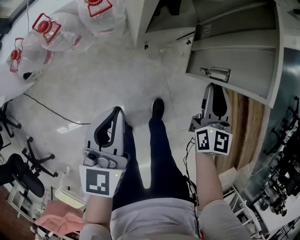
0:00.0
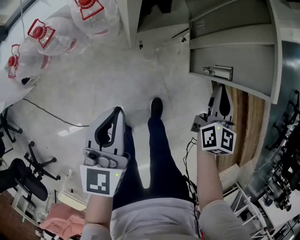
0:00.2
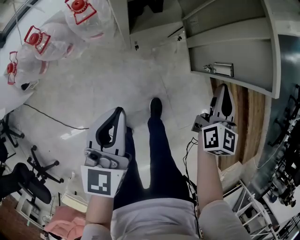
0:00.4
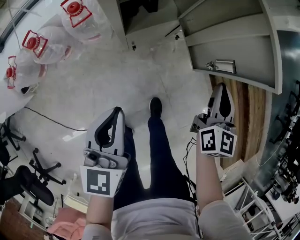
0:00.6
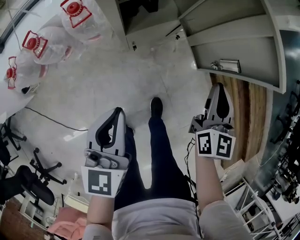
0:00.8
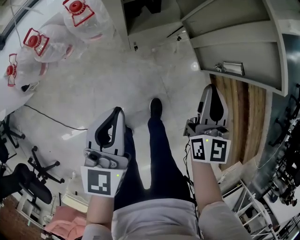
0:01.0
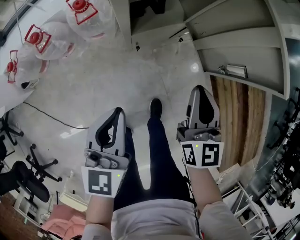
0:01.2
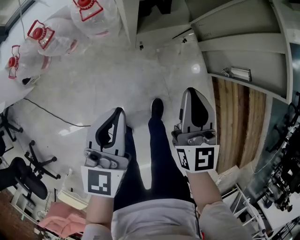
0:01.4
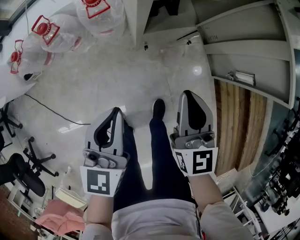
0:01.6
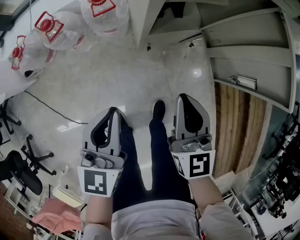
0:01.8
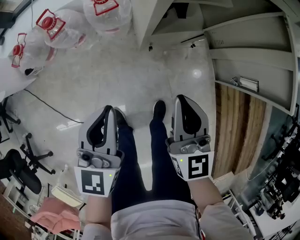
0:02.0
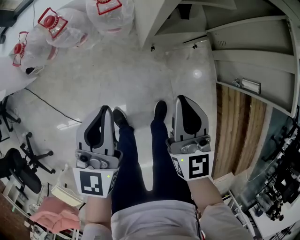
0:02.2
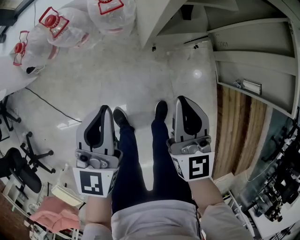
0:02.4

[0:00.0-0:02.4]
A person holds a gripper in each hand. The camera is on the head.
0:00.0 to 0:01.2: The right gripper travels to the right and back again, about 10 cm each way.
0:01.2 to 0:02.4: The grippers both shift to the left by some 10 cm.

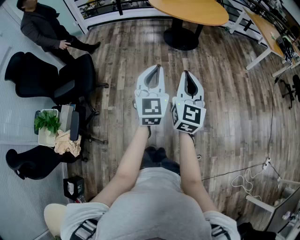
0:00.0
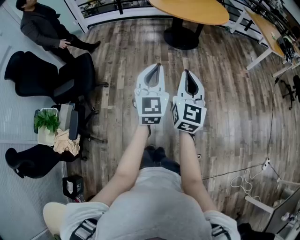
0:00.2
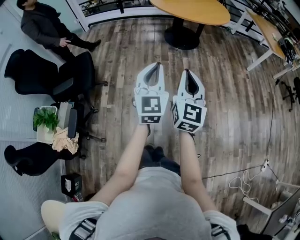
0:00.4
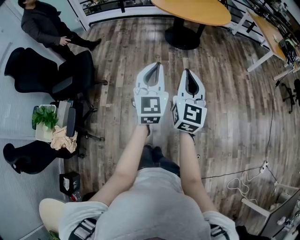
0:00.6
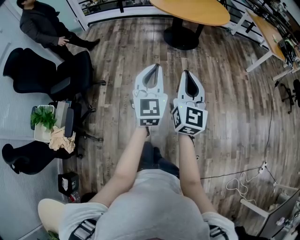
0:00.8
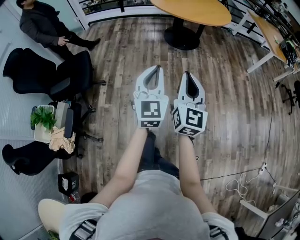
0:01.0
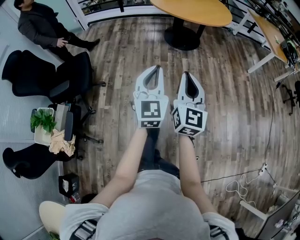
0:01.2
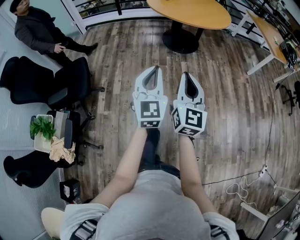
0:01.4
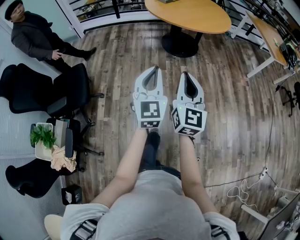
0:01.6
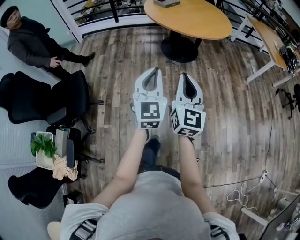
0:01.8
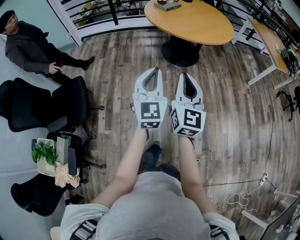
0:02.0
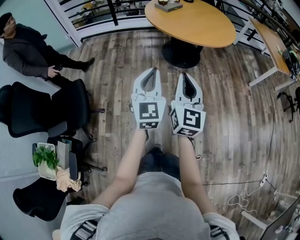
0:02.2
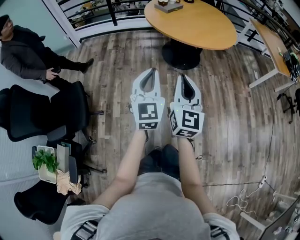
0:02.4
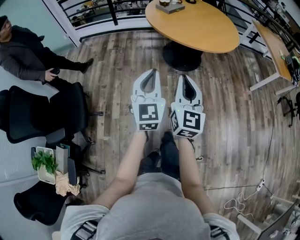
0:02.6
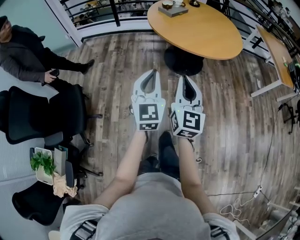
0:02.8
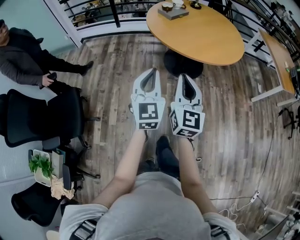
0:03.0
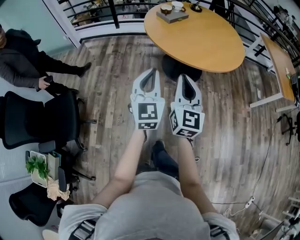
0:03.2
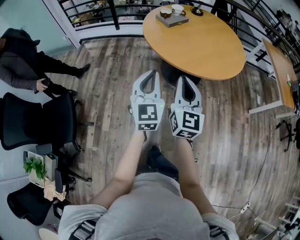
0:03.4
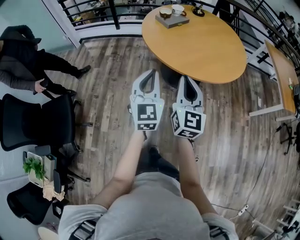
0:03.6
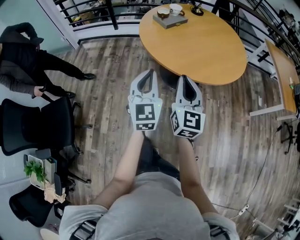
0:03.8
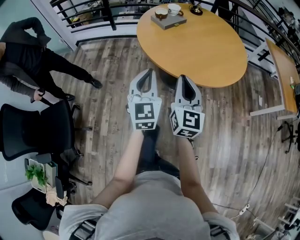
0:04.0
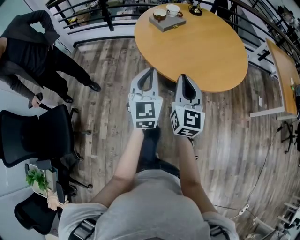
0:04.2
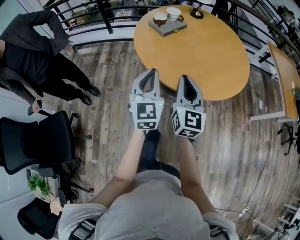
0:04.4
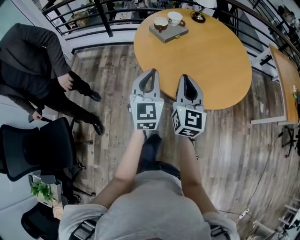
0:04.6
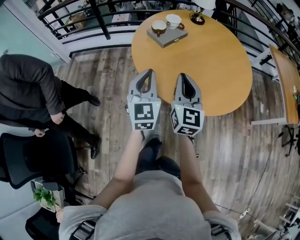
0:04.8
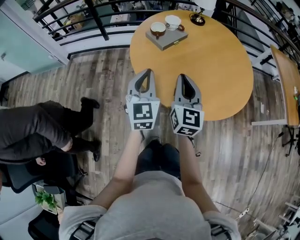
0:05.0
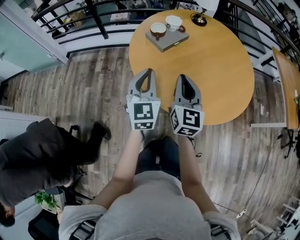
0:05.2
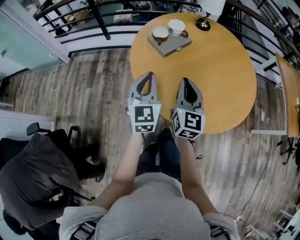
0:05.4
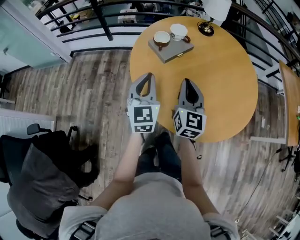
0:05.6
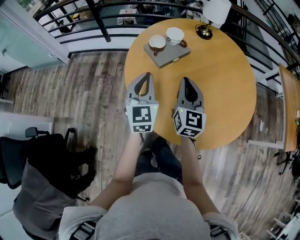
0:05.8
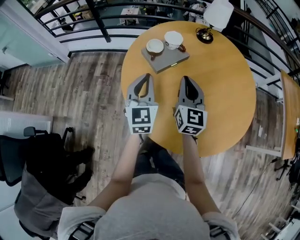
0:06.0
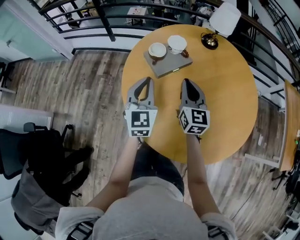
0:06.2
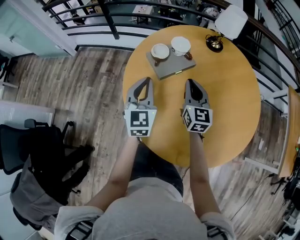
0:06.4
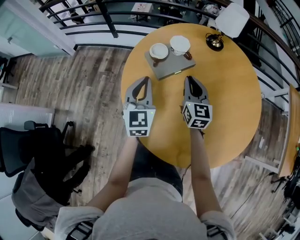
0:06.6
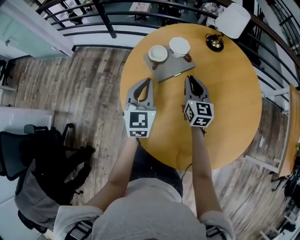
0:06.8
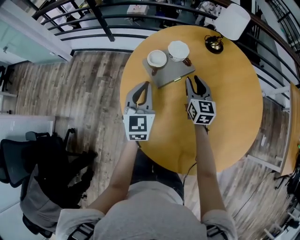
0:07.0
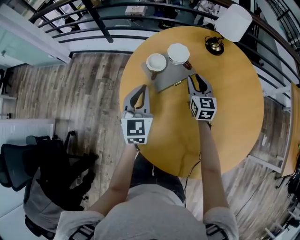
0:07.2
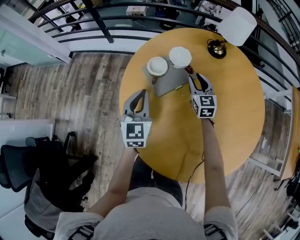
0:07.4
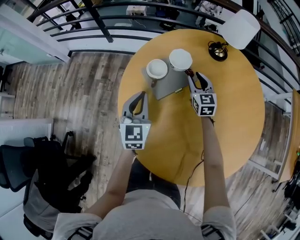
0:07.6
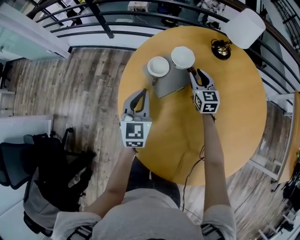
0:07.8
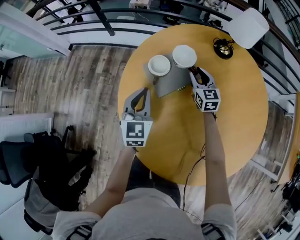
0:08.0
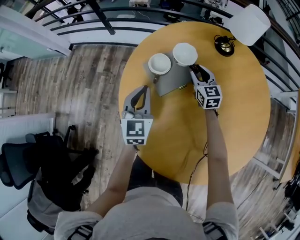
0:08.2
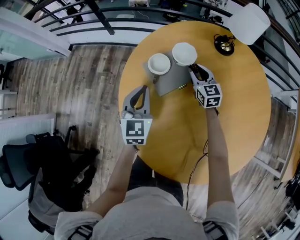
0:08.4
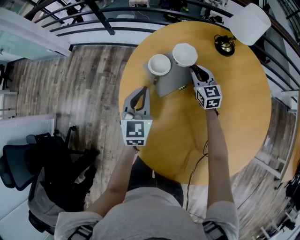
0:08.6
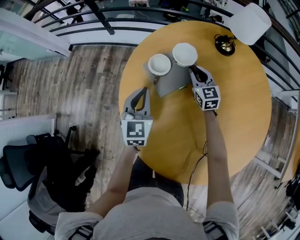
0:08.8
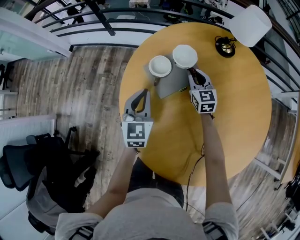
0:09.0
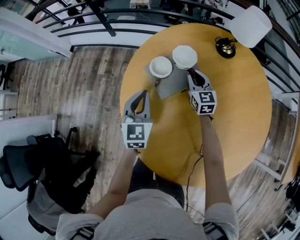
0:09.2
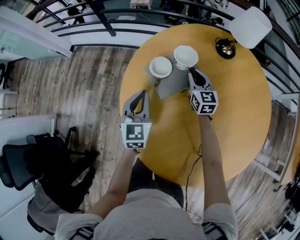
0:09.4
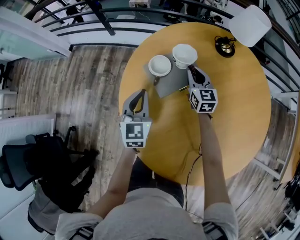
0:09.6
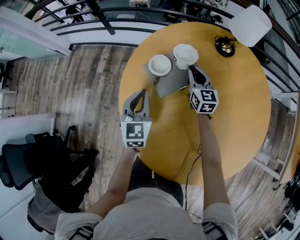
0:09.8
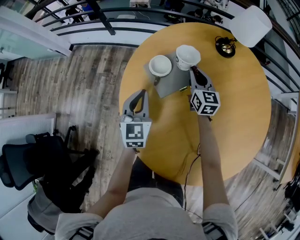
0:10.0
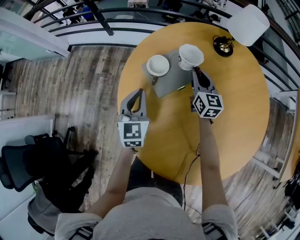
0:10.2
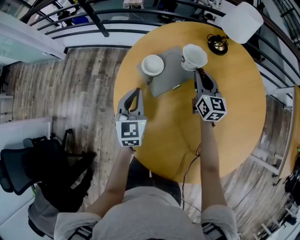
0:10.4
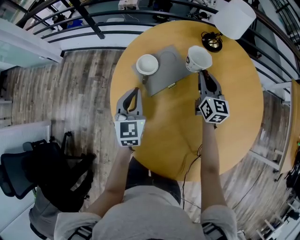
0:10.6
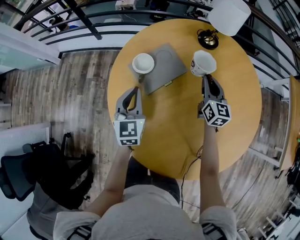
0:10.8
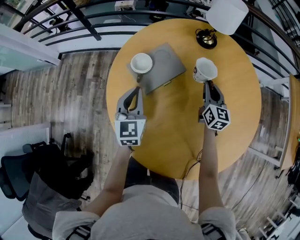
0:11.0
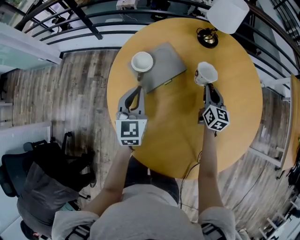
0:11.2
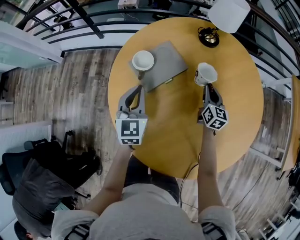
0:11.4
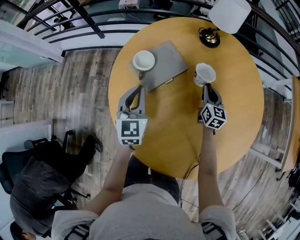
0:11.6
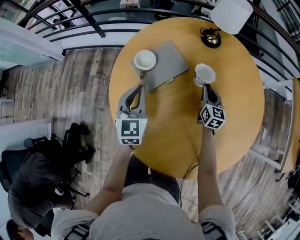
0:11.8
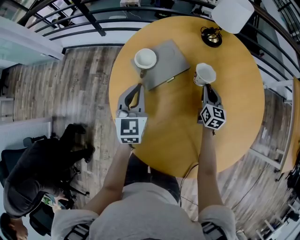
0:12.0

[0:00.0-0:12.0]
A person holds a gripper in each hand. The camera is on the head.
0:00.0 to 0:01.6: Both grippers move forward, about 15 cm.
0:01.6 to 0:03.0: Both grippers move forward, about 35 cm.
0:03.0 to 0:04.4: Both grippers move forward, roughly 30 cm.
0:04.4 to 0:06.0: Both grippers move forward, about 35 cm.
0:06.0 to 0:07.6: The left gripper is displaced forward and downward by about 15 cm. The right gripper heads forward and downward, covering approximately 30 cm, swivels about 20 degrees, and opens its fingers.
0:07.6 to 0:09.0: The grippers make only small movements.
0:09.0 to 0:10.4: The right gripper heads upward and to the right, covering approximately 10 cm.
0:10.4 to 0:12.0: The right gripper travels to the right, downward and backward by approximately 15 cm.

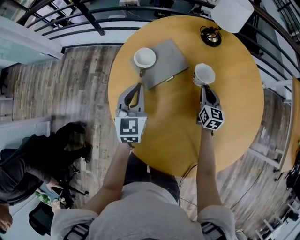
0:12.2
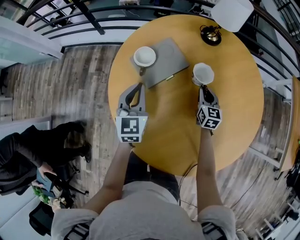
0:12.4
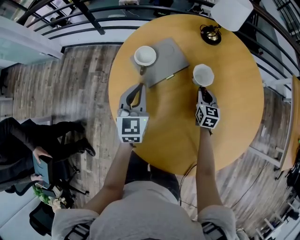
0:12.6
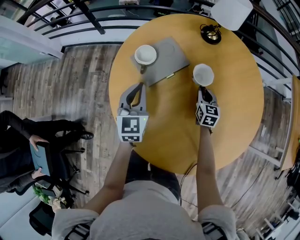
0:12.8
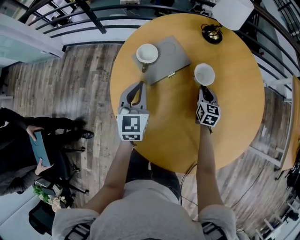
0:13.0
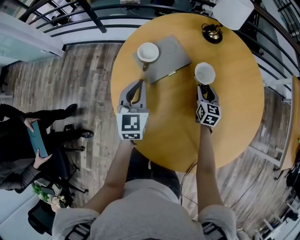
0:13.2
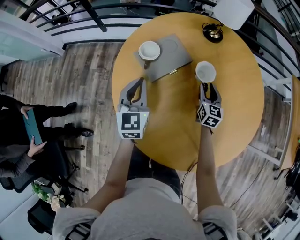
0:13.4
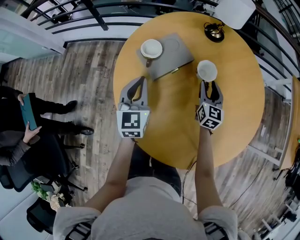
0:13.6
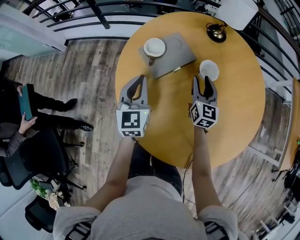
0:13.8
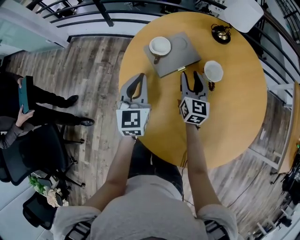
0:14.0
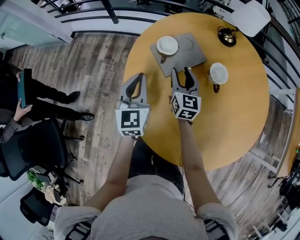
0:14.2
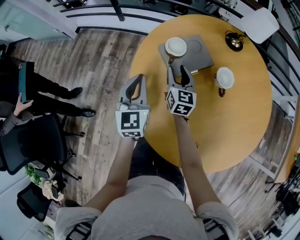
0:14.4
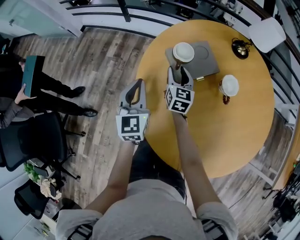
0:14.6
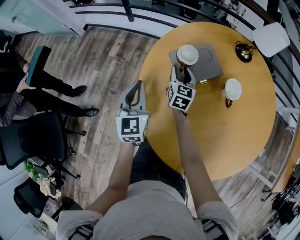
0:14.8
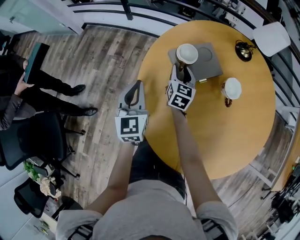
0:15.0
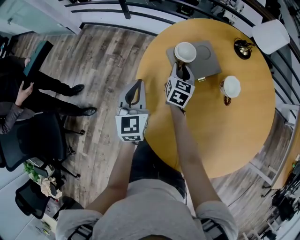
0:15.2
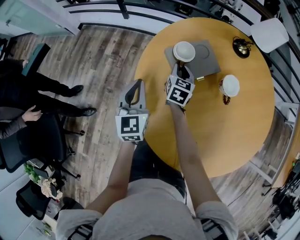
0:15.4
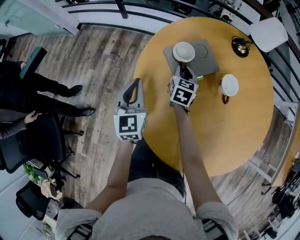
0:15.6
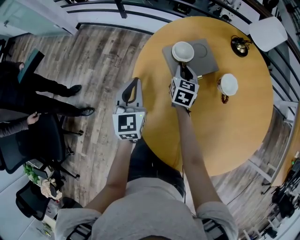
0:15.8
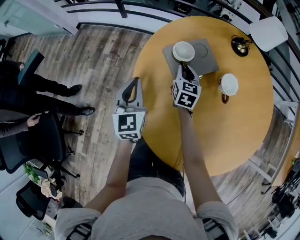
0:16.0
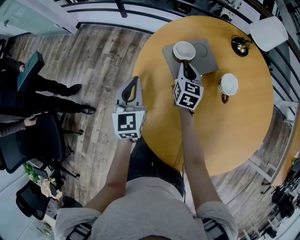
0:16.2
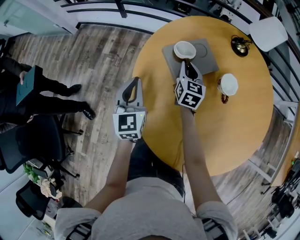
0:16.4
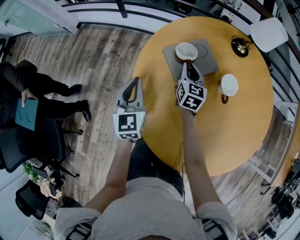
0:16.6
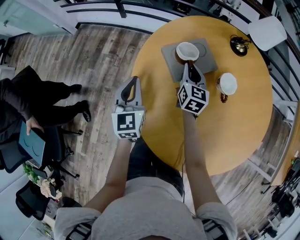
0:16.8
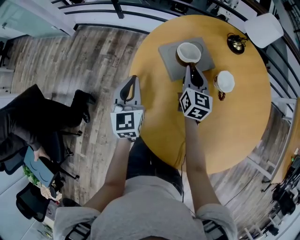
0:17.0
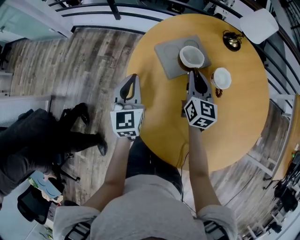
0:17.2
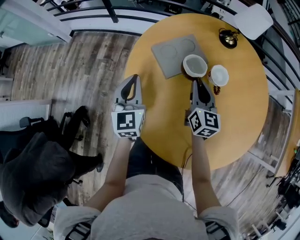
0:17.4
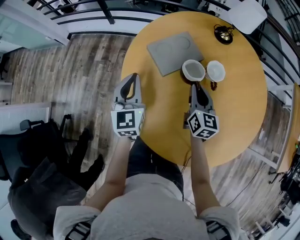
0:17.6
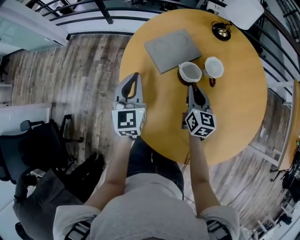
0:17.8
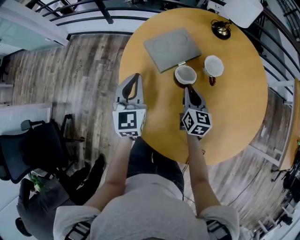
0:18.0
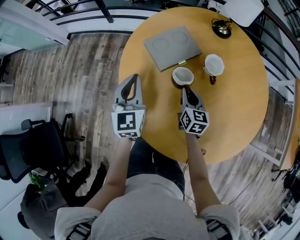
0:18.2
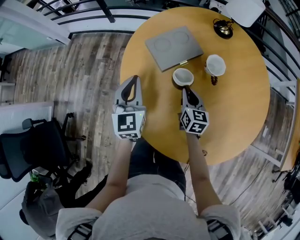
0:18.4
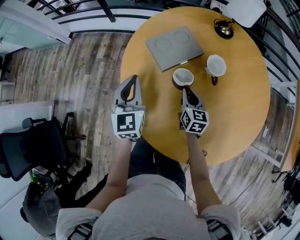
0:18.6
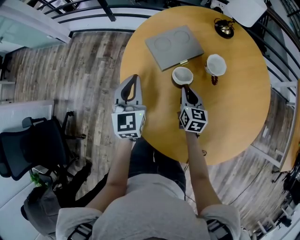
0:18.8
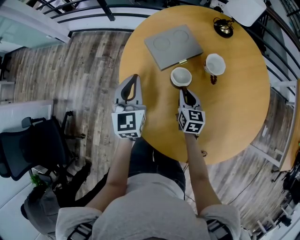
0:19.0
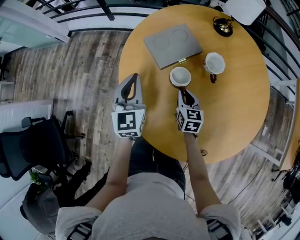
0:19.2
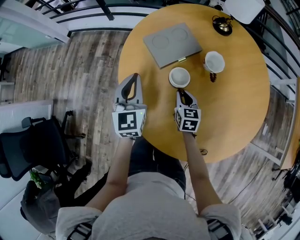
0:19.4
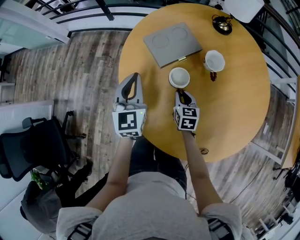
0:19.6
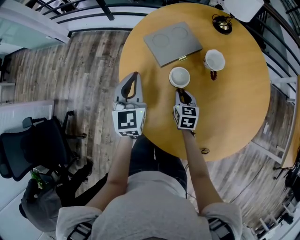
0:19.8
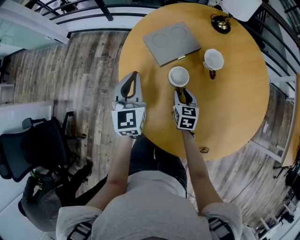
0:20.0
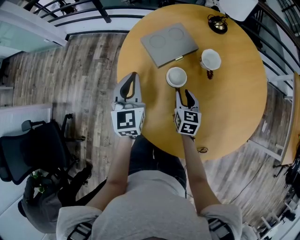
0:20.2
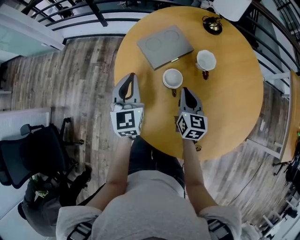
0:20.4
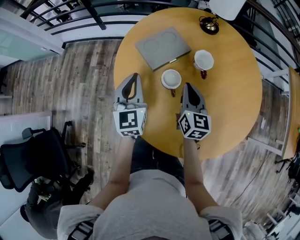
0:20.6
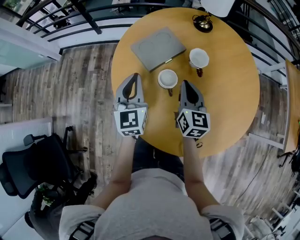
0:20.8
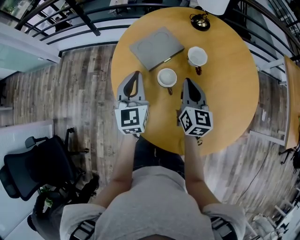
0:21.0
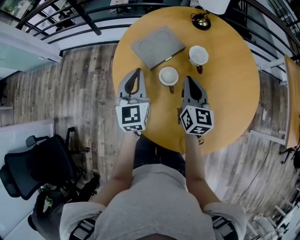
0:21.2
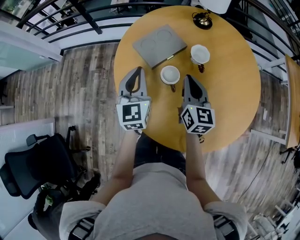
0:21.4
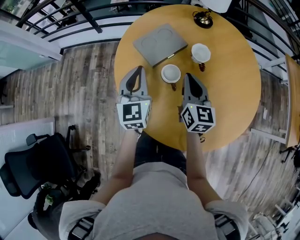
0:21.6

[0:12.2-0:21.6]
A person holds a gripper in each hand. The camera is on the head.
0:12.2 to 0:13.8: The right gripper goes roughly 10 cm to the left and upward, and opens up.
0:13.8 to 0:15.4: The left gripper heads to the left, covering roughly 10 cm. Meanwhile the right gripper shifts approximately 20 cm to the left and forward, and closes up.
0:15.4 to 0:17.0: The right gripper goes roughly 10 cm upward and to the right.
0:17.0 to 0:18.4: The right gripper heads backward, downward and to the right, covering approximately 15 cm, while the left gripper shifts approximately 5 cm to the right.
0:18.4 to 0:20.0: The right gripper changes place by roughly 5 cm.
0:20.0 to 0:21.6: The right gripper moves upward, roughly 20 cm, rotates approximately 30 degrees, and closes; the left gripper shifts by roughly 5 cm.
